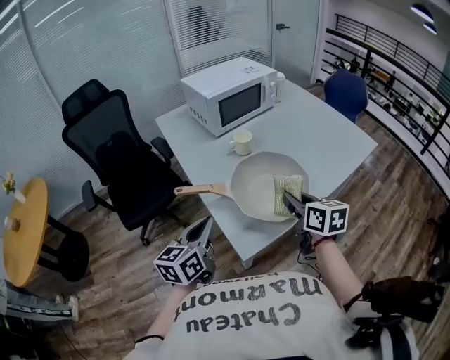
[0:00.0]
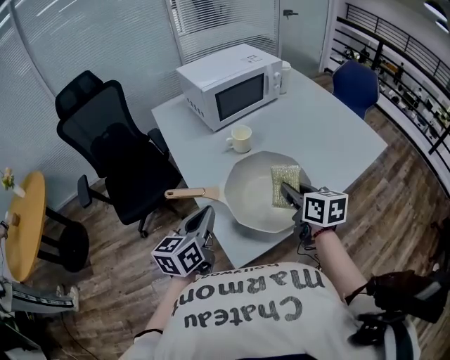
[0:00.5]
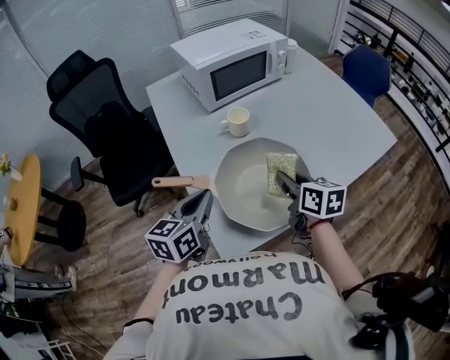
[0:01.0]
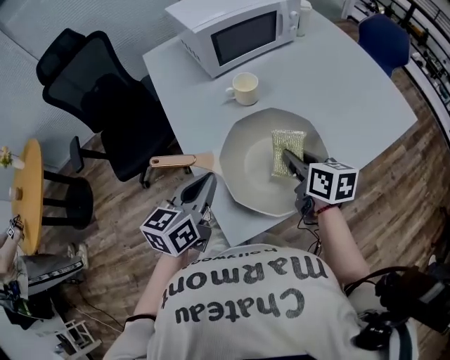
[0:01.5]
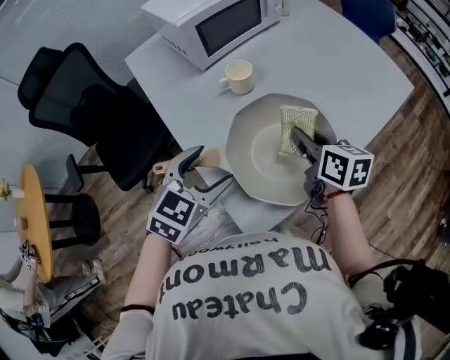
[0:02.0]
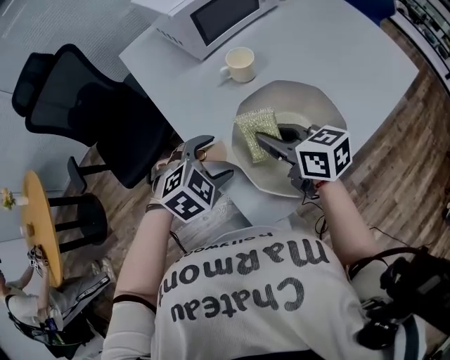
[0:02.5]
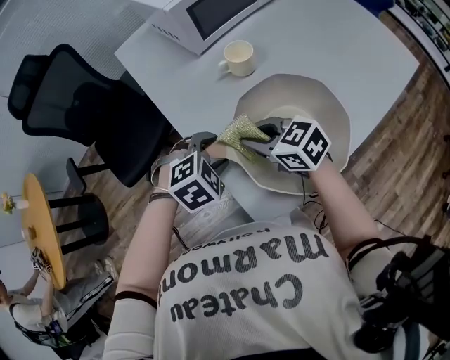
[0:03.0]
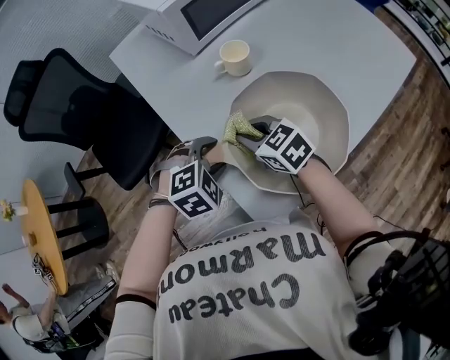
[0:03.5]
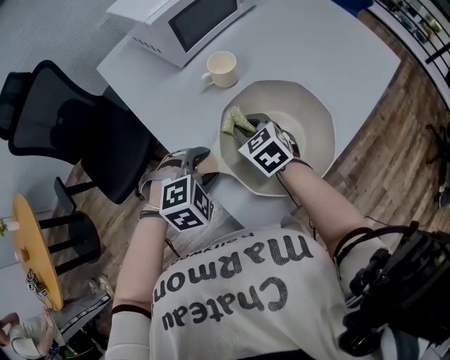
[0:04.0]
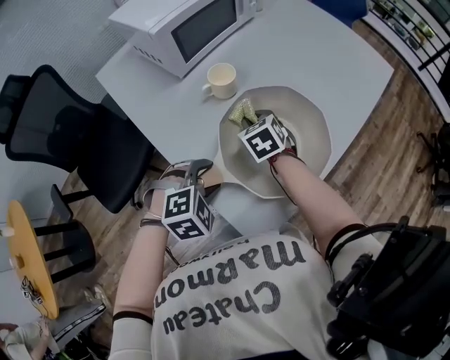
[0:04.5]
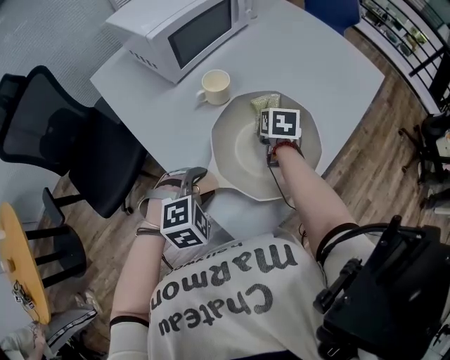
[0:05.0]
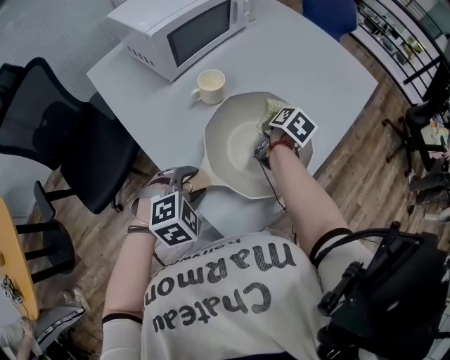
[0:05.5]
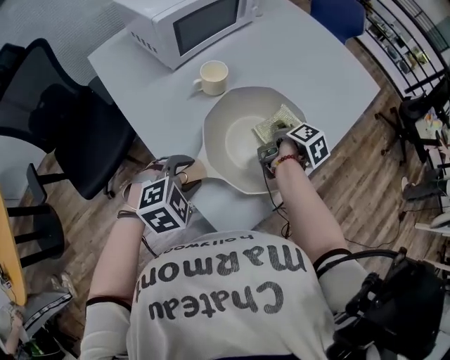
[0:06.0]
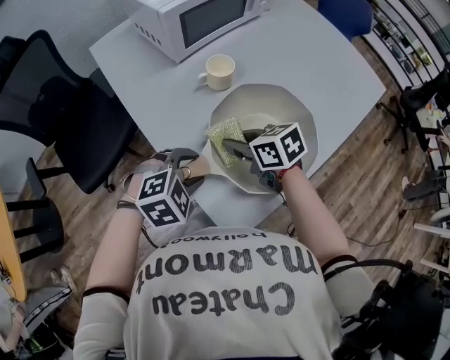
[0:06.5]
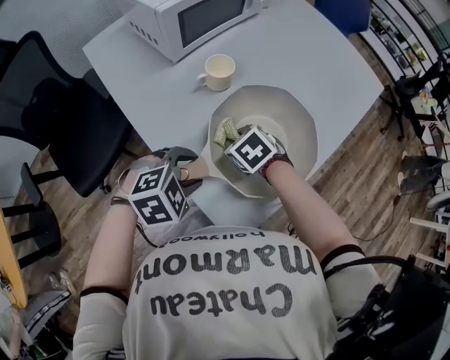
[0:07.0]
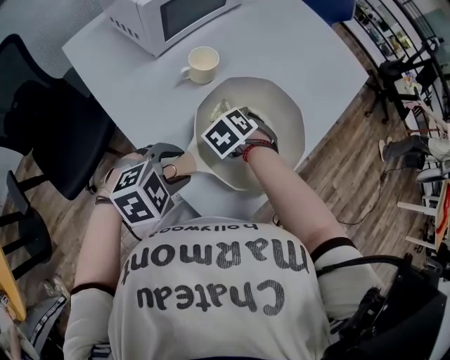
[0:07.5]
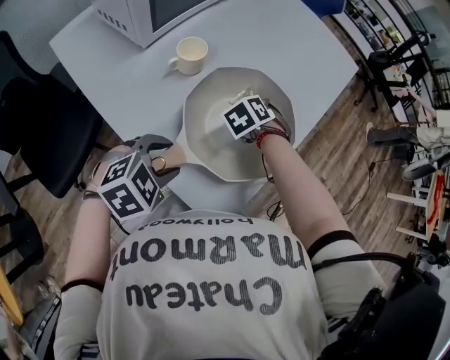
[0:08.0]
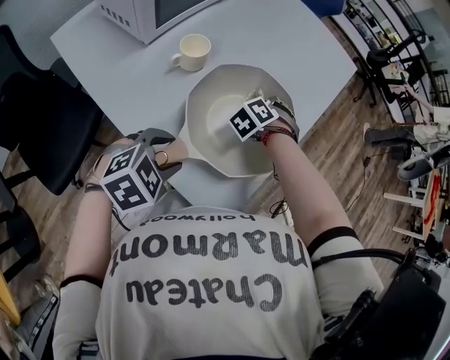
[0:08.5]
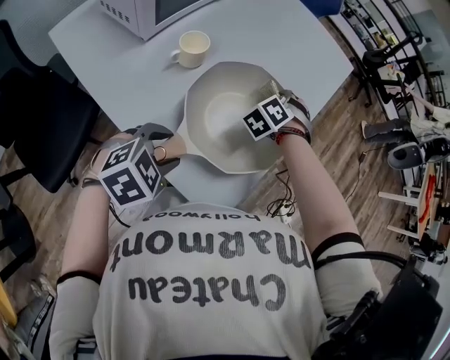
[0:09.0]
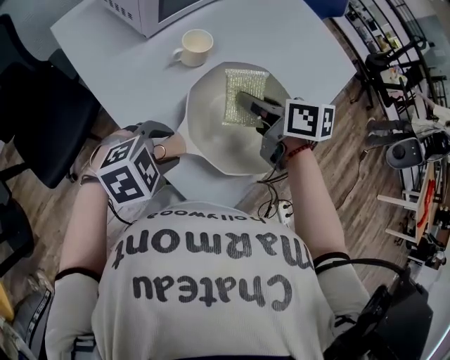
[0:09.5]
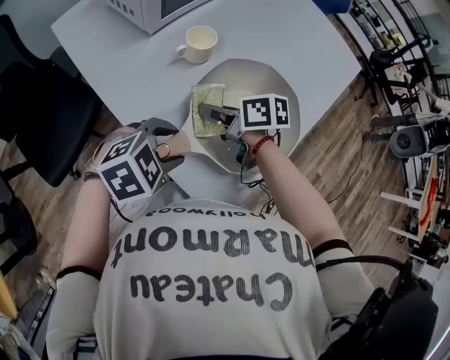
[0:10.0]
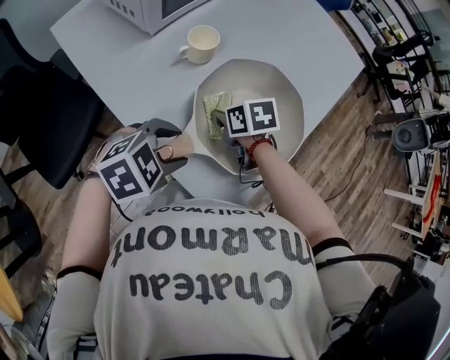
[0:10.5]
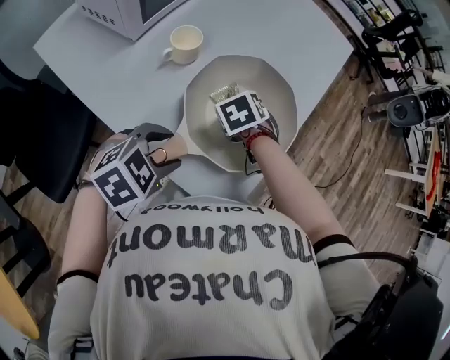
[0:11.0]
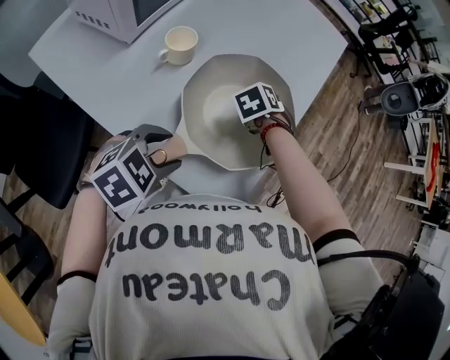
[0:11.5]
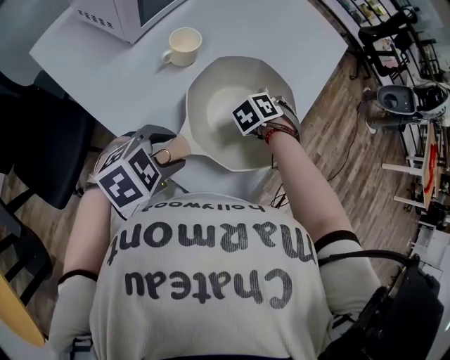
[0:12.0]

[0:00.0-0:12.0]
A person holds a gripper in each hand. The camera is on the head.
0:00.0 to 0:02.0: The right gripper moves forward and downward, approximately 15 cm. The left gripper shifts some 15 cm forward, downward and to the right, rotates some 50 degrees, and opens up.
0:02.0 to 0:04.0: The right gripper goes about 15 cm to the left and downward, and changes its angle by about 40 degrees. The left gripper goes some 10 cm downward, and turns by approximately 40 degrees.
0:04.0 to 0:06.0: The right gripper is displaced to the right by about 20 cm, and rolls clockwise, seen from behind, by roughly 90 degrees.
0:06.0 to 0:08.0: The right gripper rotates around the line of its fingers by about 100 degrees, counterclockwise from behind.
0:08.0 to 0:10.0: The right gripper ends up some 20 cm from where it was, and angles its fingers upward, by some 30 degrees.
0:10.0 to 0:12.0: The right gripper shifts by about 25 cm, and turns by approximately 90 degrees.

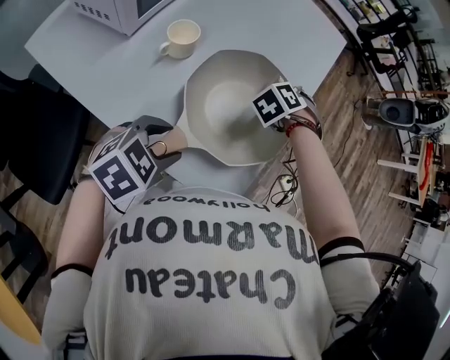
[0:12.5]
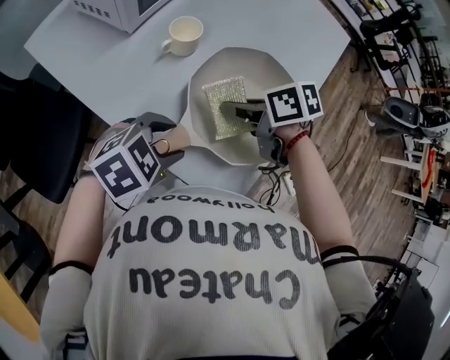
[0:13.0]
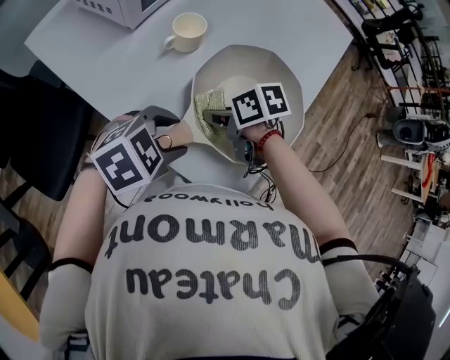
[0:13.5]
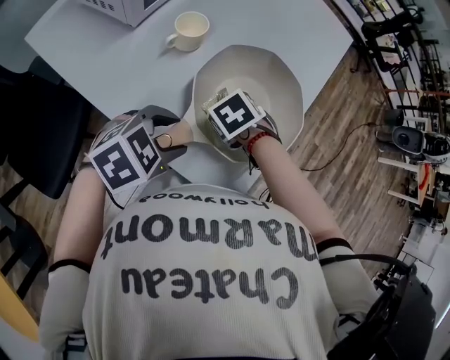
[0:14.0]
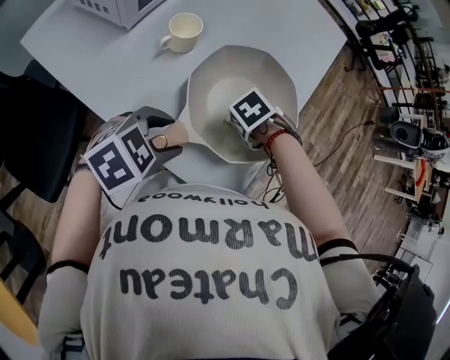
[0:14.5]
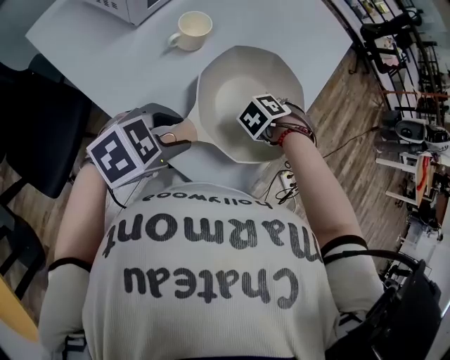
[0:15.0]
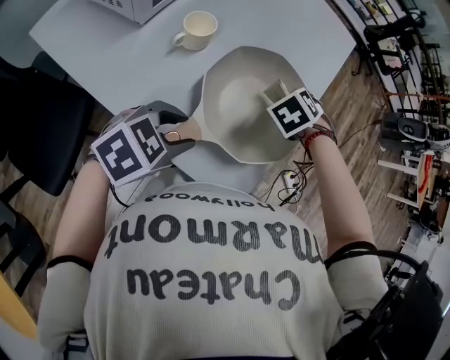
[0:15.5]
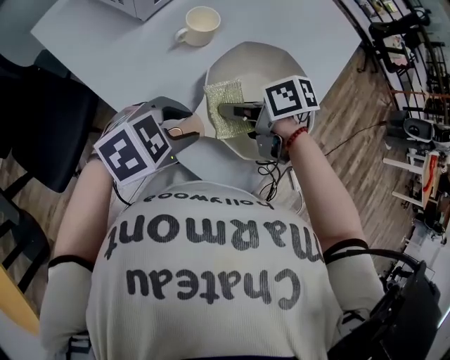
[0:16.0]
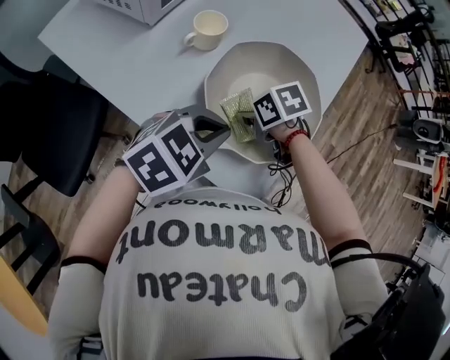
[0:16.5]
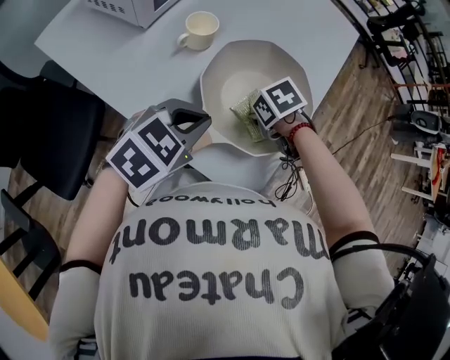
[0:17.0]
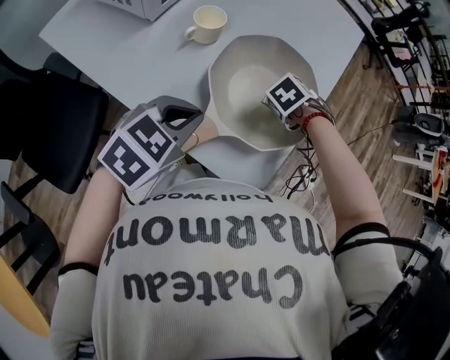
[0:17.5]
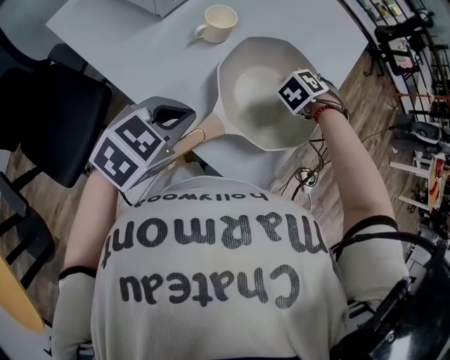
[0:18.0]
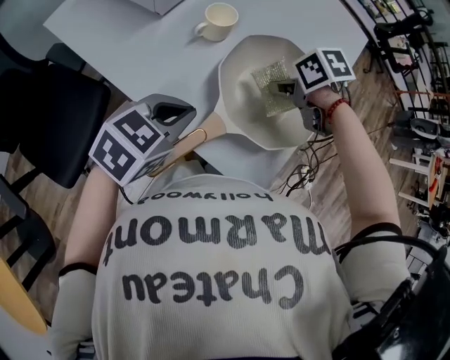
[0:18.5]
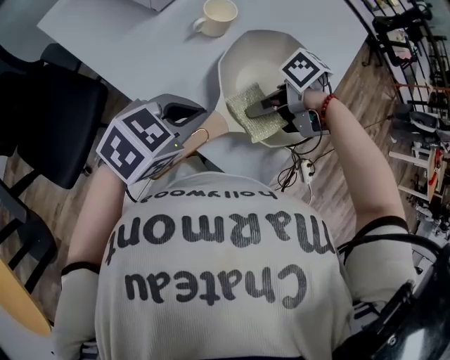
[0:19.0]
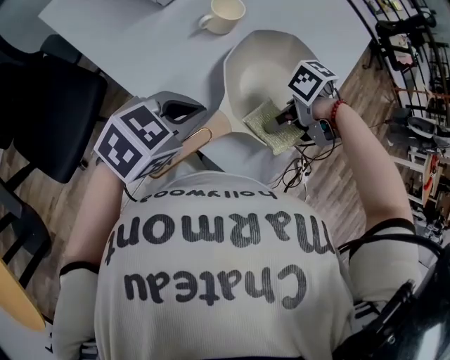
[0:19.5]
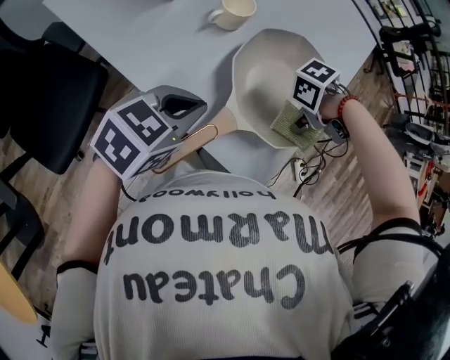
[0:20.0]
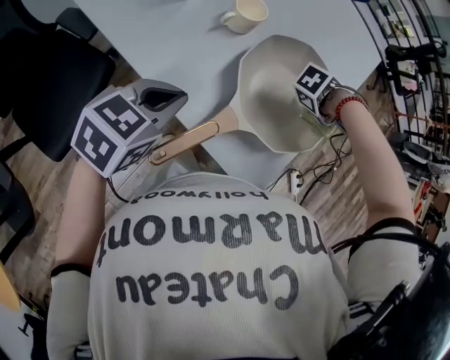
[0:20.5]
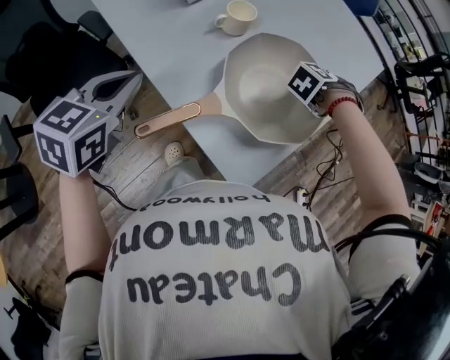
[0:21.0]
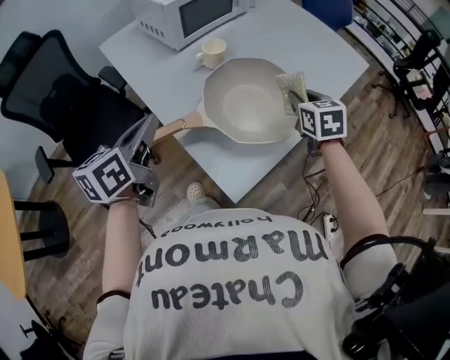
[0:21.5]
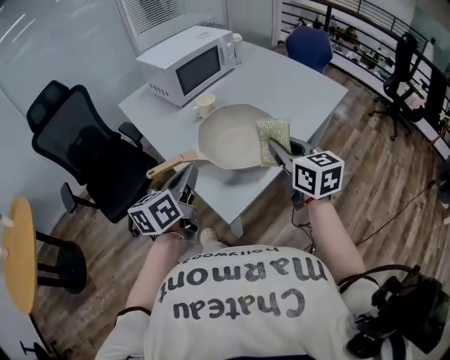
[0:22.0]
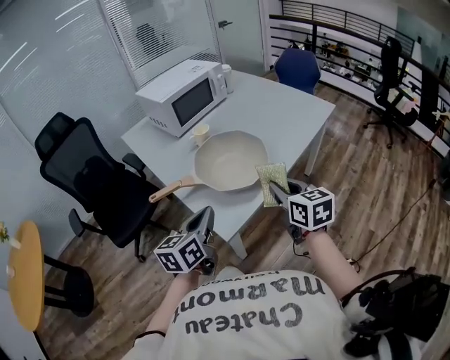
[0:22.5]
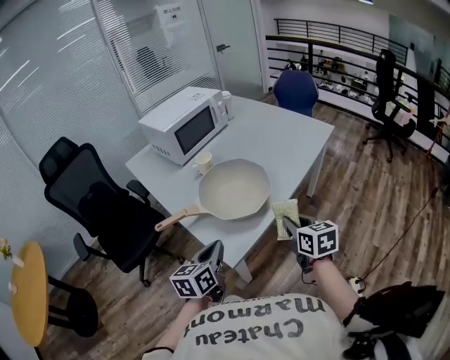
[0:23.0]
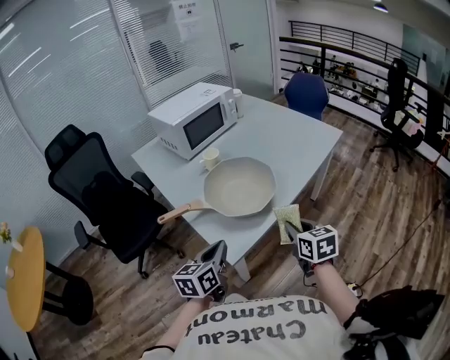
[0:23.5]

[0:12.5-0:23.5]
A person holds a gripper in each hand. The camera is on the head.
0:12.5 to 0:14.5: The right gripper rotates some 30 degrees.
0:14.5 to 0:16.0: The right gripper changes place by some 15 cm, and tilts its fingers some 40 degrees upward.
0:16.0 to 0:18.0: The right gripper ends up approximately 25 cm from where it was, and rotates about 90 degrees, while the left gripper changes place by roughly 5 cm, and closes.
0:18.0 to 0:20.0: The right gripper moves about 15 cm, and turns by some 60 degrees.
0:20.0 to 0:21.5: The left gripper moves upward, approximately 10 cm, and rotates about 60 degrees, while the right gripper shifts by roughly 15 cm, and swivels approximately 90 degrees.
0:21.5 to 0:23.5: The right gripper travels backward by about 25 cm; the left gripper shifts some 25 cm to the right and backward.

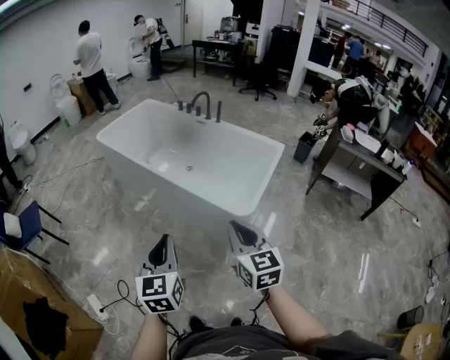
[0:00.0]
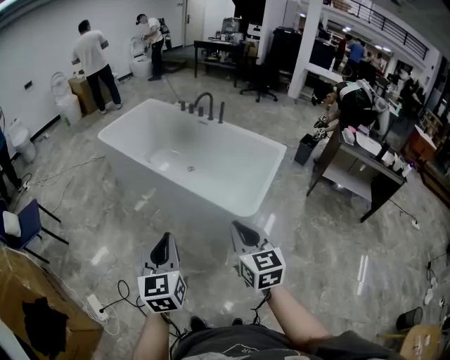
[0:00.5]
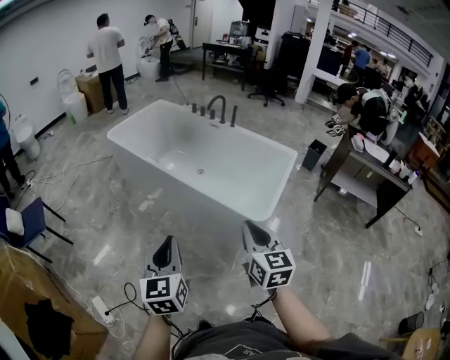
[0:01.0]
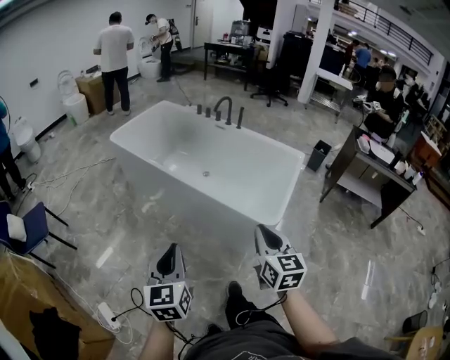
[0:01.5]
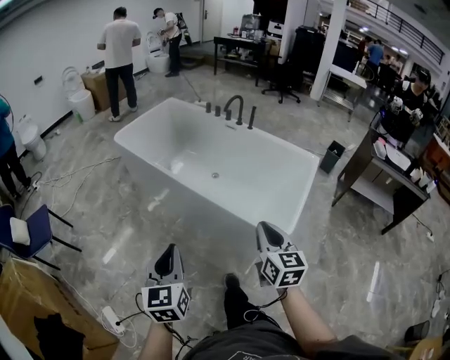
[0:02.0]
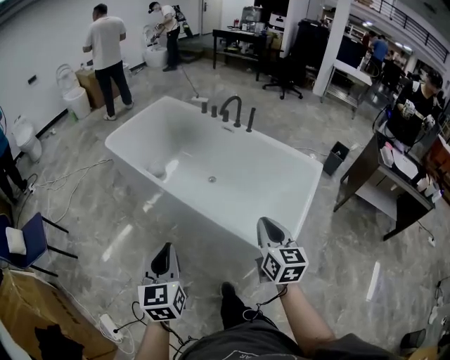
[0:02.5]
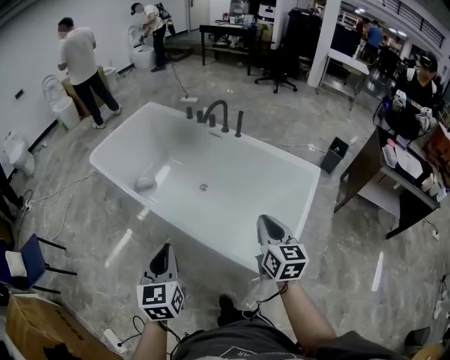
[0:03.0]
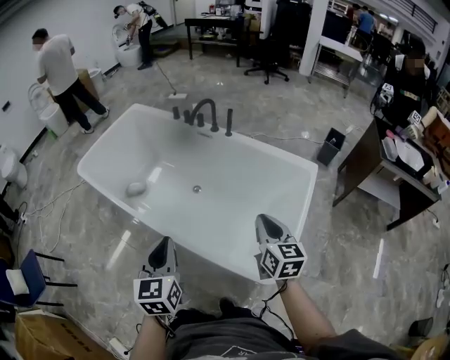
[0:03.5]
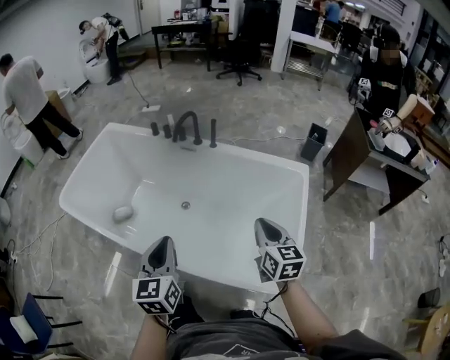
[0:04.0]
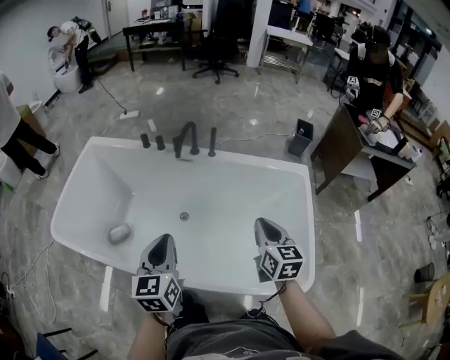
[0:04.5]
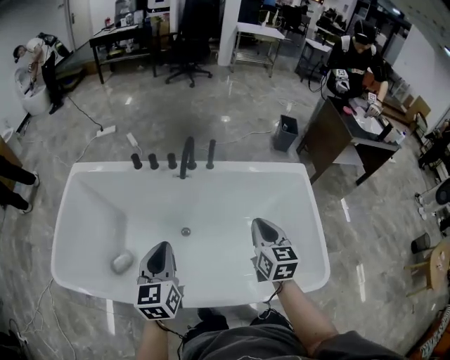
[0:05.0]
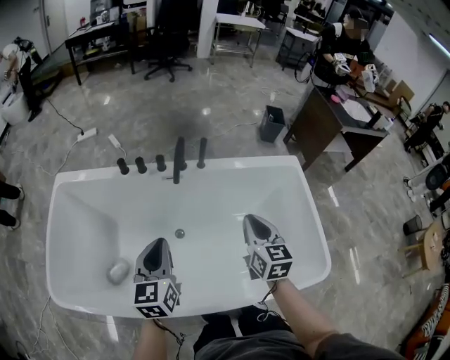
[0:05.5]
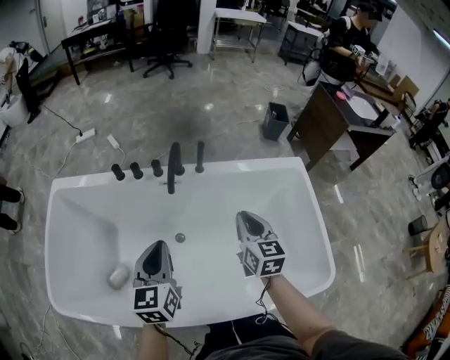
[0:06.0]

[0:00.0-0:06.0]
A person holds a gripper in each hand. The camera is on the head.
0:00.0 to 0:02.0: The right gripper goes approximately 15 cm forward, while the left gripper is displaced forward and to the left by roughly 20 cm.
0:02.0 to 0:04.0: Both grippers are carried forward, approximately 40 cm.
0:04.0 to 0:06.0: The right gripper shifts by some 30 cm, and swivels some 20 degrees; the left gripper moves approximately 35 cm, and turns by approximately 20 degrees.
